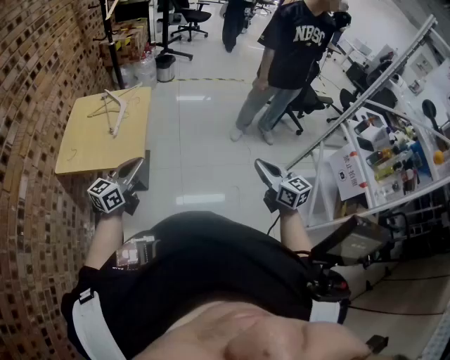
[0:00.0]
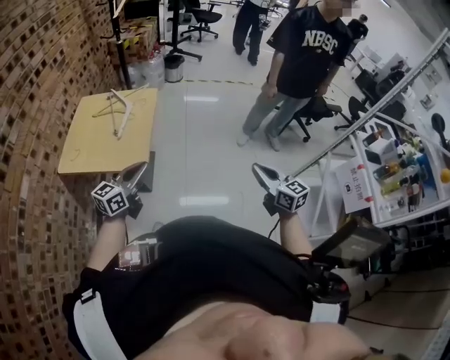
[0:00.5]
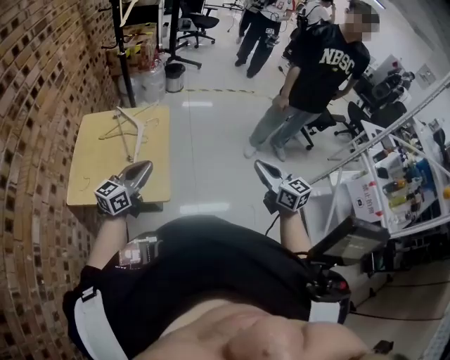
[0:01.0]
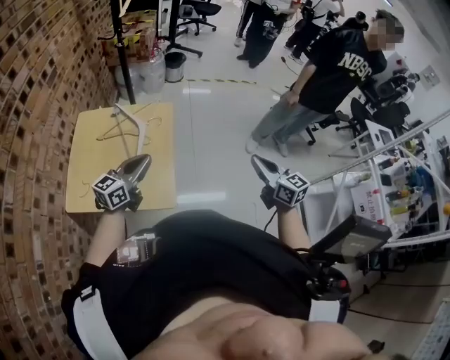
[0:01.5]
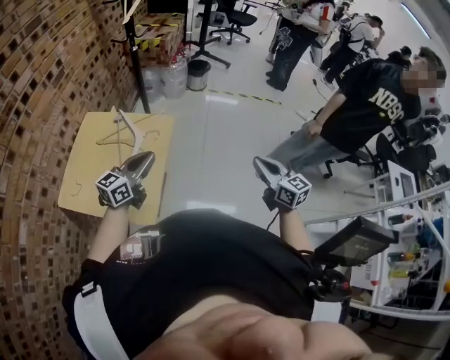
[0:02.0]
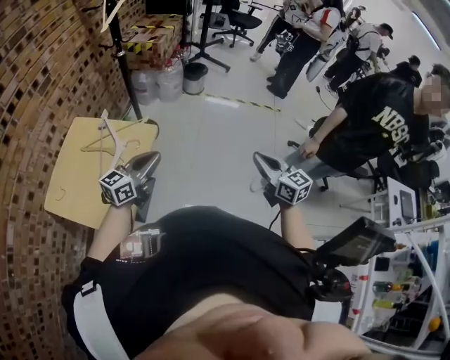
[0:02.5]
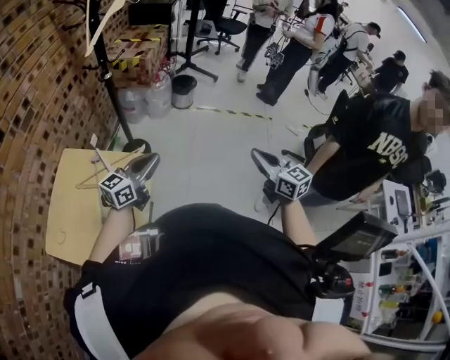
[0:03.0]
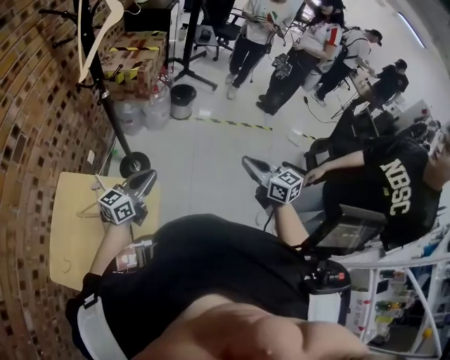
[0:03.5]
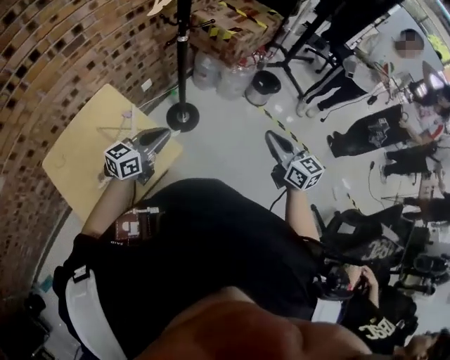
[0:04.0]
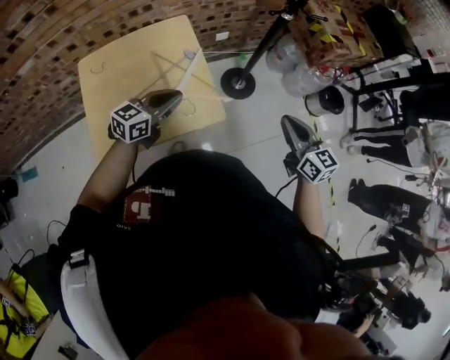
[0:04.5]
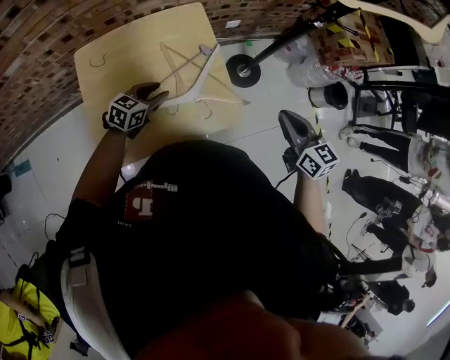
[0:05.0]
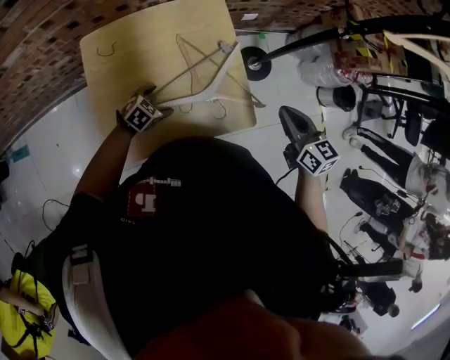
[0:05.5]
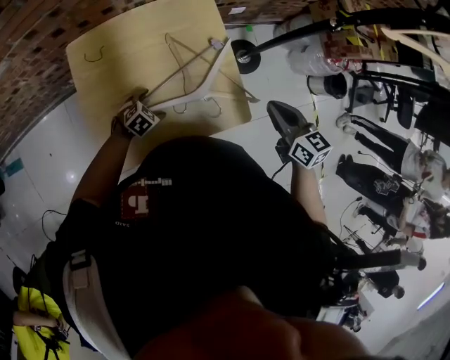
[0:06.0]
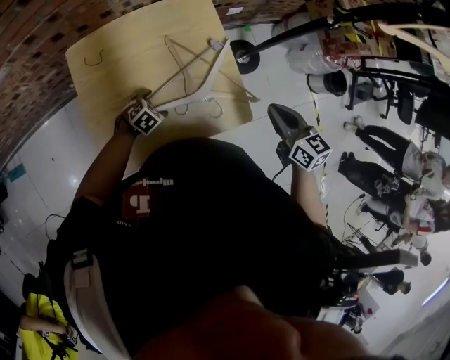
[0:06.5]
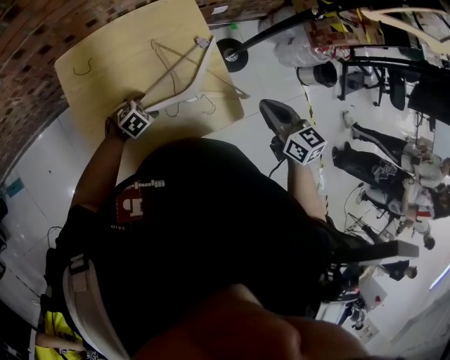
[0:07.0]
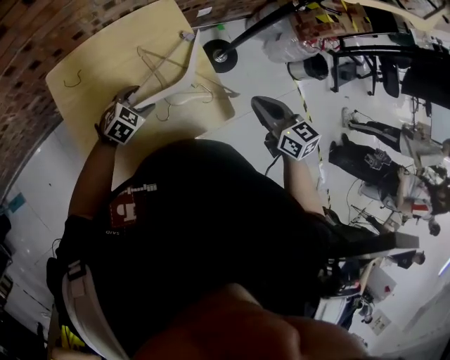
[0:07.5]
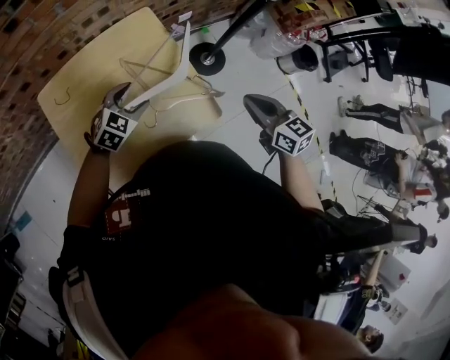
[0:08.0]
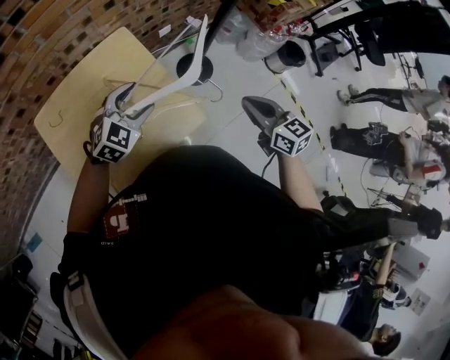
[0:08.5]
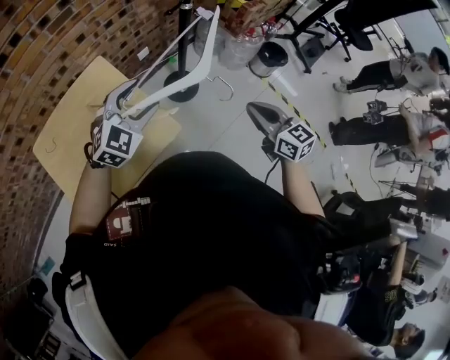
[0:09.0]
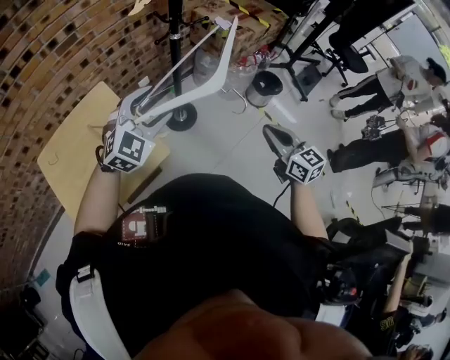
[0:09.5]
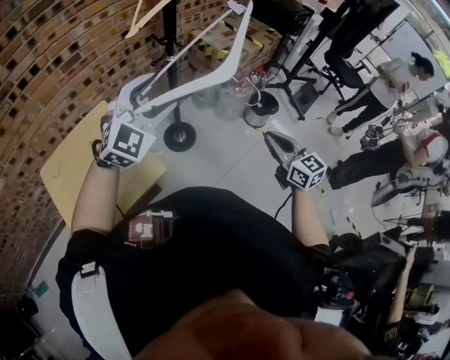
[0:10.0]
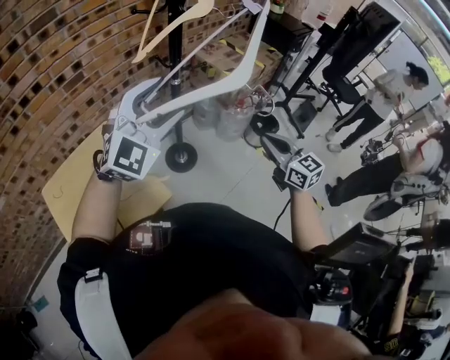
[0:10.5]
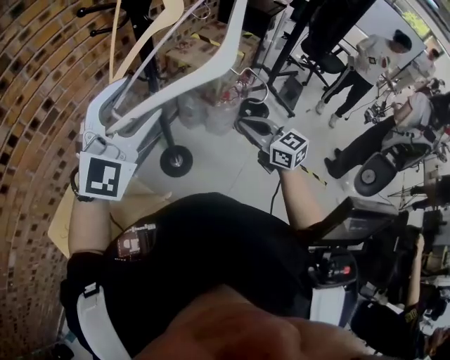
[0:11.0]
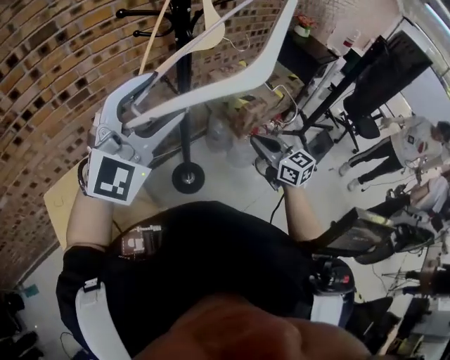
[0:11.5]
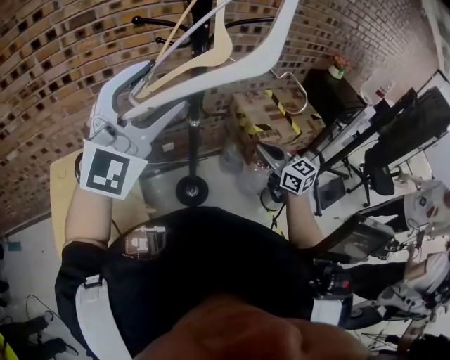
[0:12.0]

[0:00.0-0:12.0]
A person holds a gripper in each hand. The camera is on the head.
0:00.0 to 0:02.0: The grippers both shift forward by approximately 35 cm.
0:02.0 to 0:04.0: The right gripper ends up about 50 cm from where it was, and turns by about 30 degrees. Meanwhile the left gripper changes place by roughly 30 cm, and changes its angle by about 30 degrees.
0:04.0 to 0:06.0: The left gripper moves downward, approximately 35 cm, tilts its fingers some 60 degrees downward, and opens its fingers. The right gripper moves some 35 cm, and turns by approximately 30 degrees.
0:06.0 to 0:08.0: The right gripper travels to the right by about 5 cm; the left gripper goes about 20 cm upward and forward, and turns by roughly 20 degrees.
0:08.0 to 0:10.0: The right gripper moves to the right, roughly 35 cm, and rotates roughly 30 degrees. Meanwhile the left gripper is displaced upward and to the right by roughly 50 cm, and tips its fingers upward by approximately 30 degrees.
0:10.0 to 0:12.0: The left gripper heads upward and forward, covering some 25 cm, and rotates about 30 degrees, while the right gripper moves forward, some 30 cm, and turns by some 30 degrees.

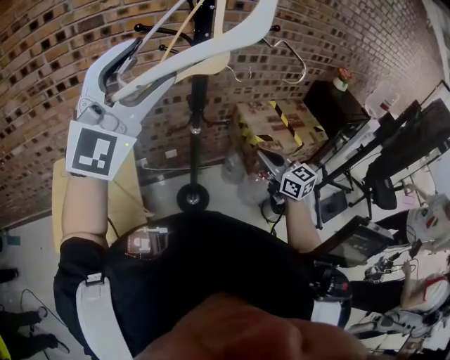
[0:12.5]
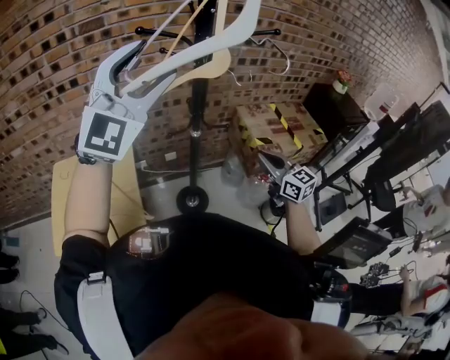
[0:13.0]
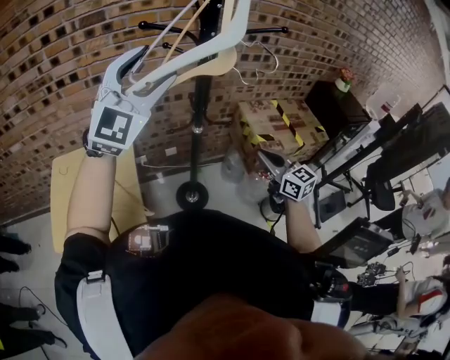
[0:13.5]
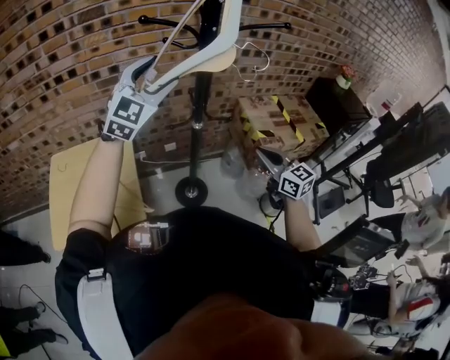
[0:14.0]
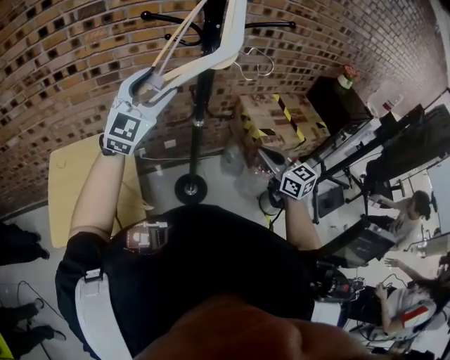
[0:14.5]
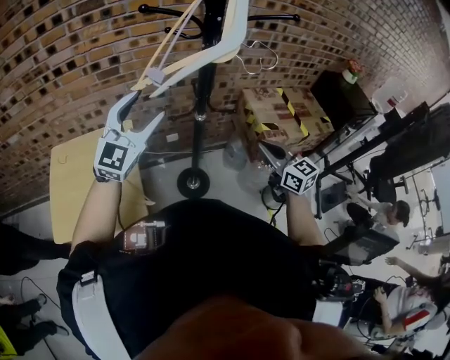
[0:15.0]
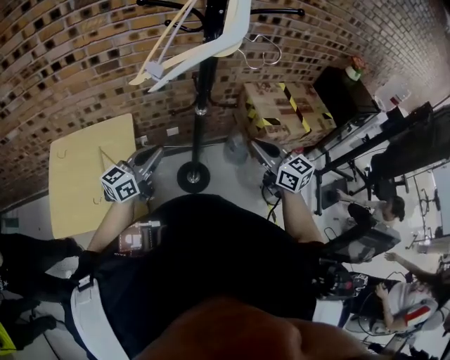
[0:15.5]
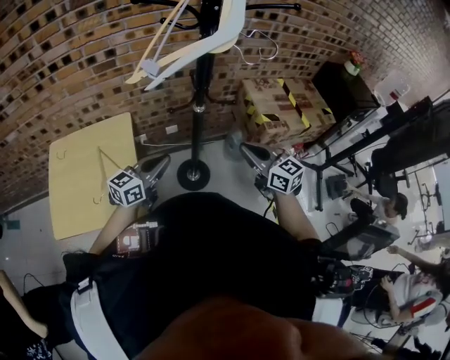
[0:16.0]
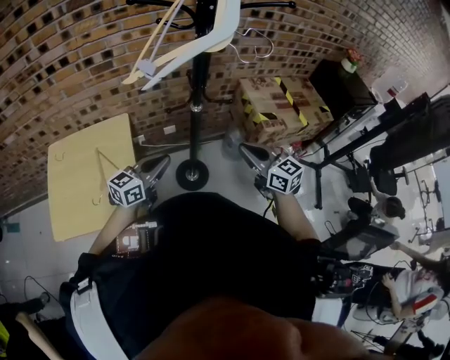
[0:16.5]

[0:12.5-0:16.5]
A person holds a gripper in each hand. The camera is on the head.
0:12.5 to 0:14.5: The left gripper goes some 20 cm downward and forward.
0:14.5 to 0:16.5: The right gripper shifts by about 5 cm; the left gripper travels downward and backward by approximately 30 cm, rolls counterclockwise, seen from behind, by approximately 50 degrees, and closes its fingers.

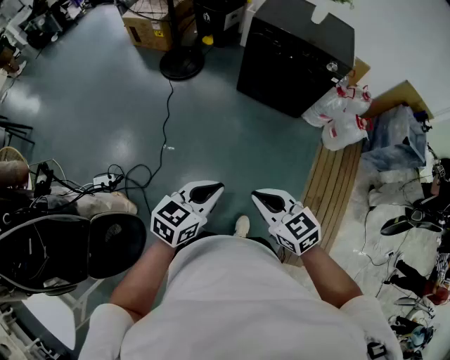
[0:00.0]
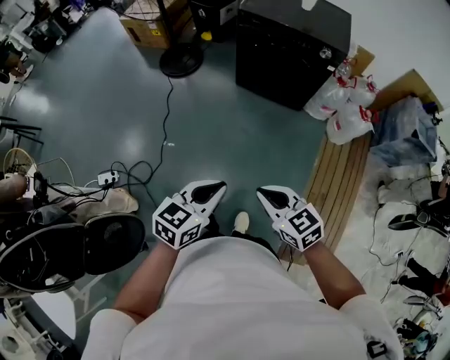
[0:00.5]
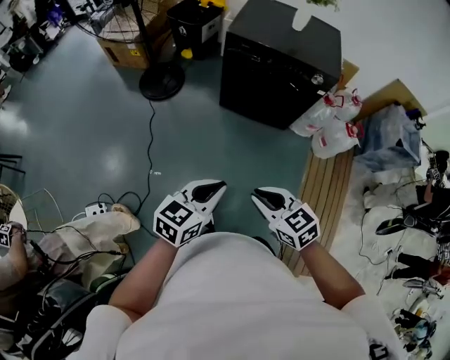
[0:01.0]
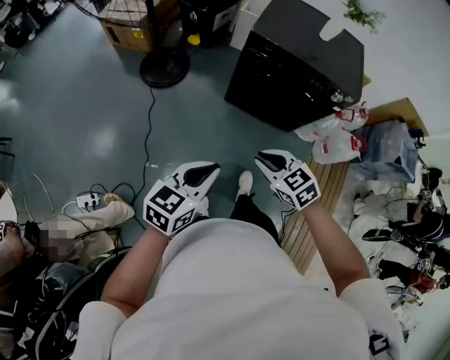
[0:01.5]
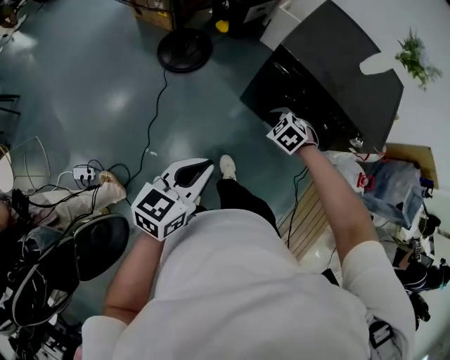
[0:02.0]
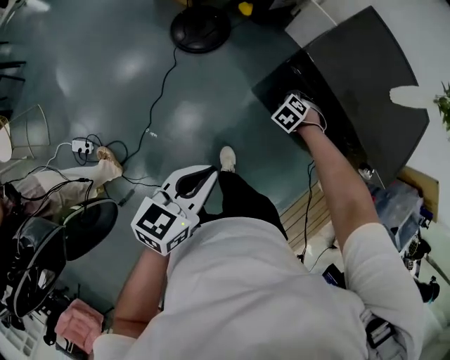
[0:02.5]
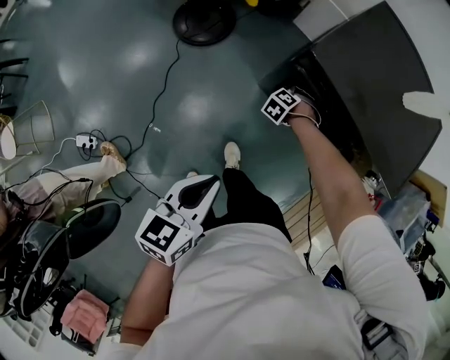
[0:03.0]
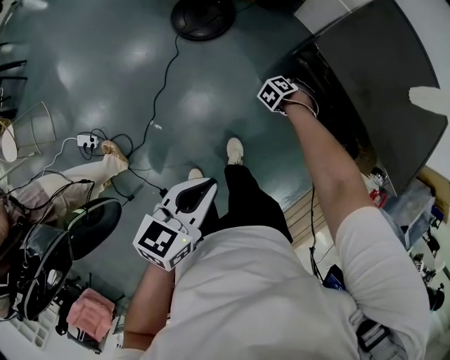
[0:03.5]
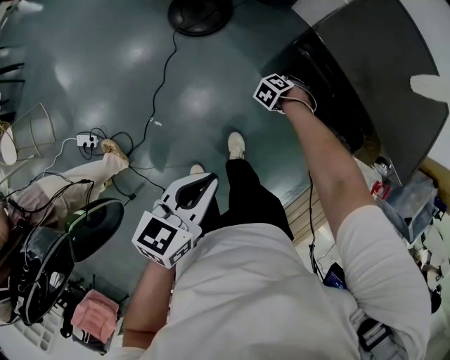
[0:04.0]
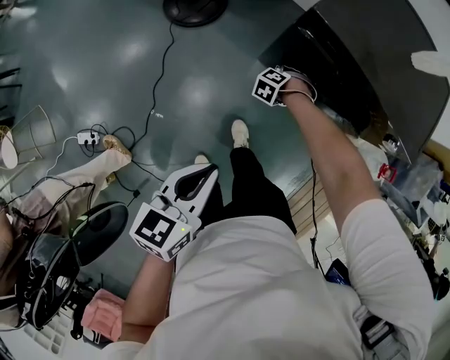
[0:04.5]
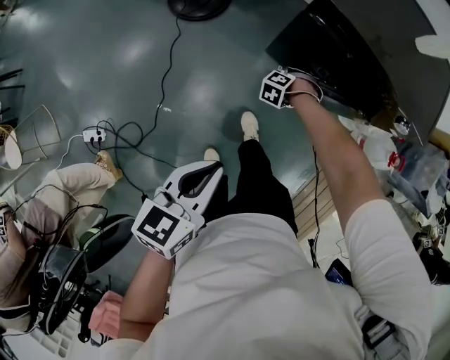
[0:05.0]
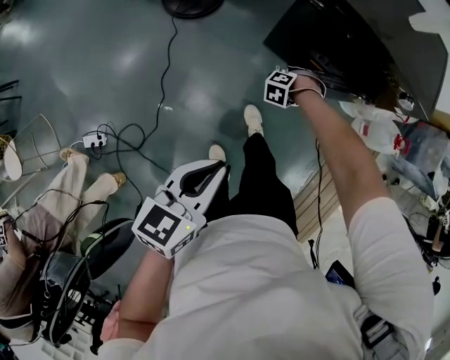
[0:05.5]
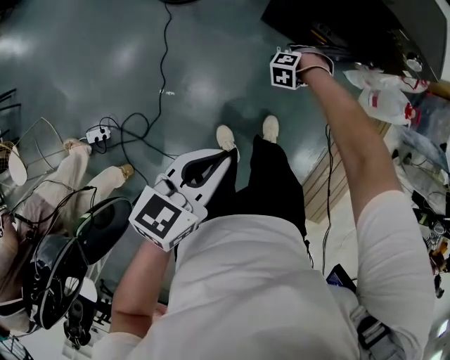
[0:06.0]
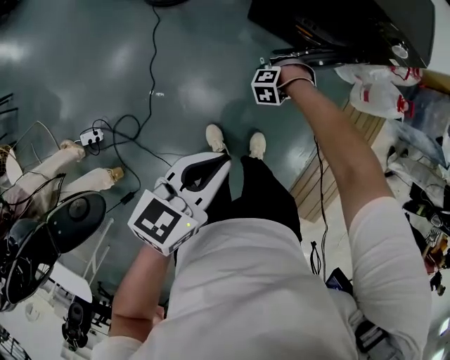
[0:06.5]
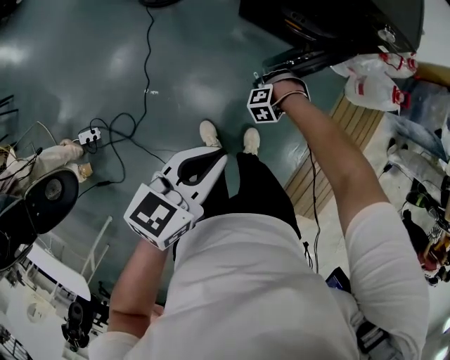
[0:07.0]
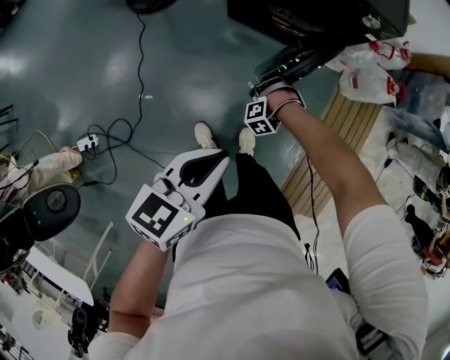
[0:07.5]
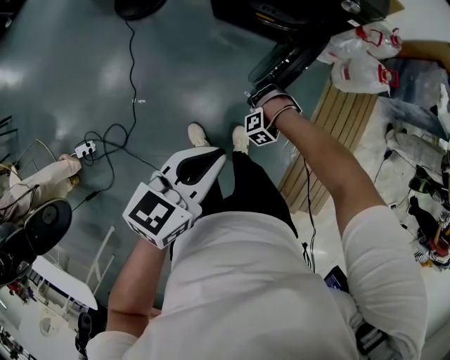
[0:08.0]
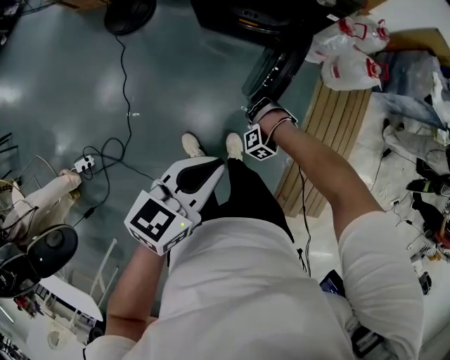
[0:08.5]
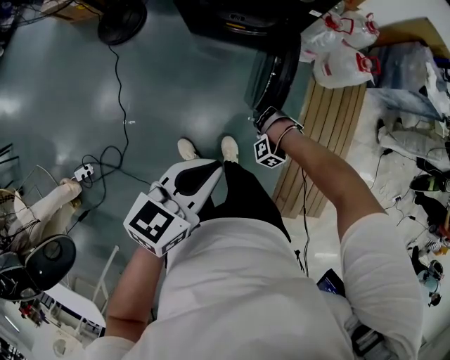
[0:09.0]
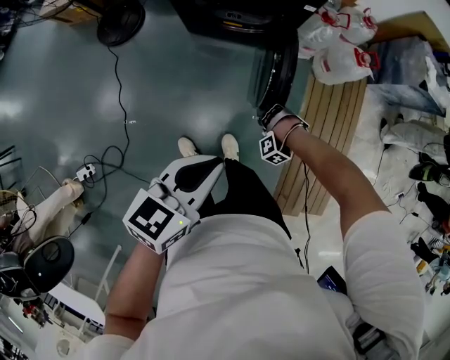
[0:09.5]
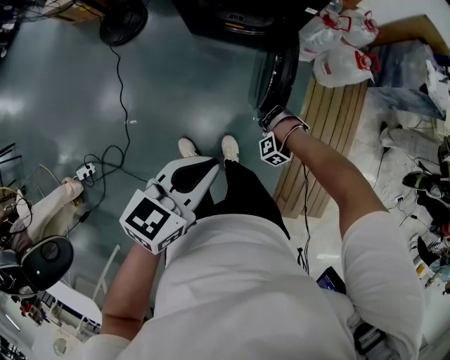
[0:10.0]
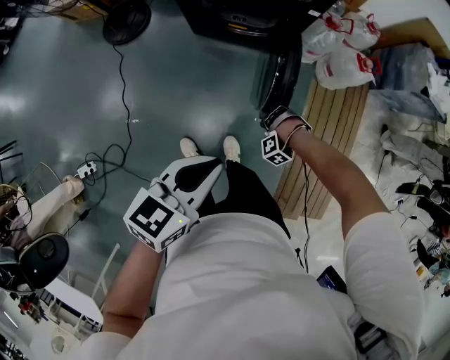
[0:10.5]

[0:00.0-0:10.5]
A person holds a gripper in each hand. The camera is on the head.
0:00.0 to 0:02.0: The left gripper ends up approximately 40 cm from where it was.
0:02.0 to 0:04.0: The left gripper ends up about 10 cm from where it was.
0:04.0 to 0:06.5: The left gripper moves about 20 cm, and changes its angle by some 20 degrees.
0:06.5 to 0:08.5: The left gripper changes place by approximately 20 cm.
